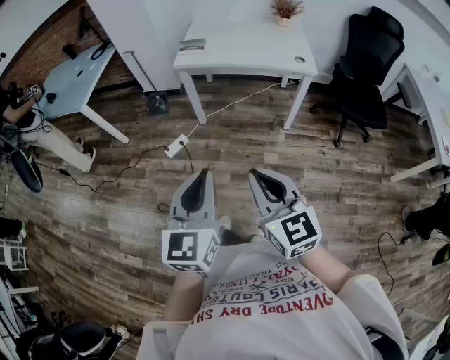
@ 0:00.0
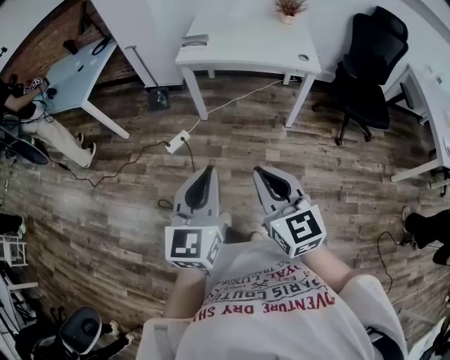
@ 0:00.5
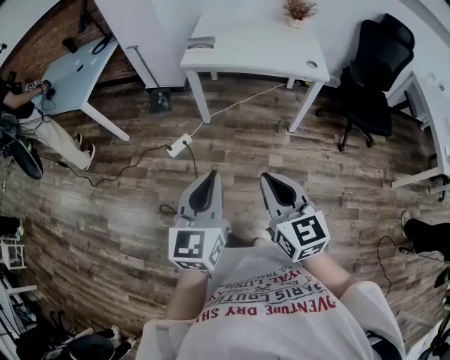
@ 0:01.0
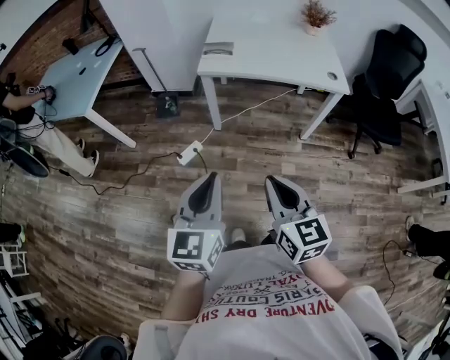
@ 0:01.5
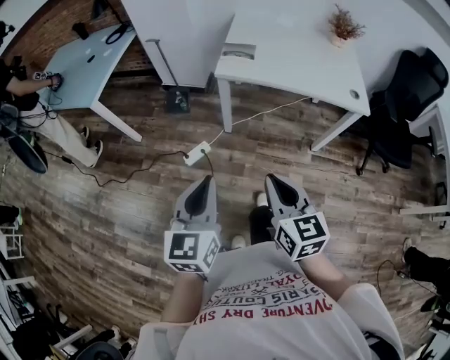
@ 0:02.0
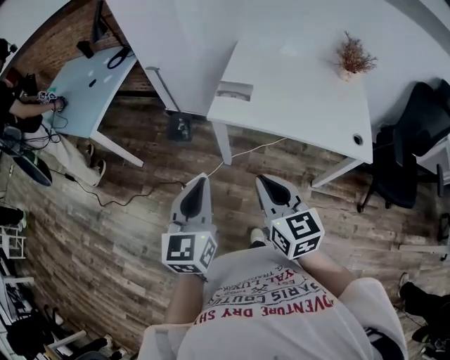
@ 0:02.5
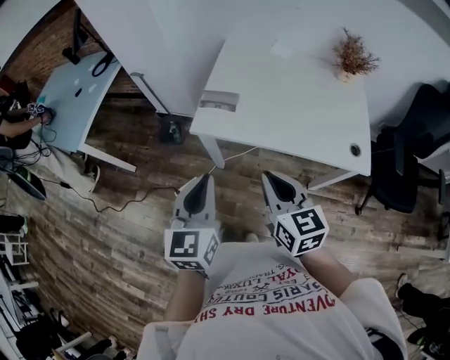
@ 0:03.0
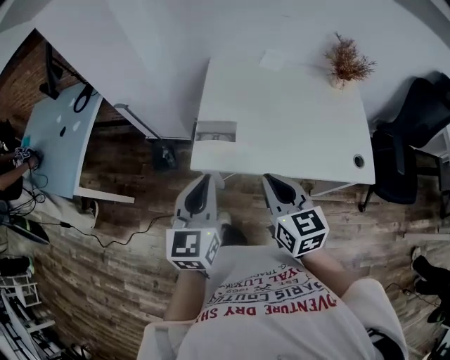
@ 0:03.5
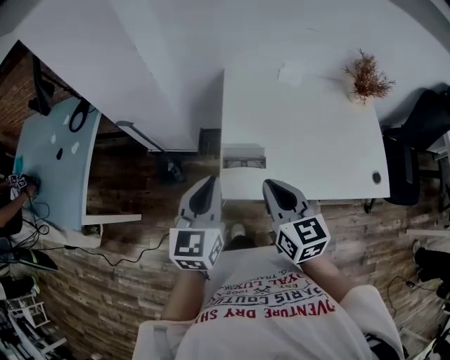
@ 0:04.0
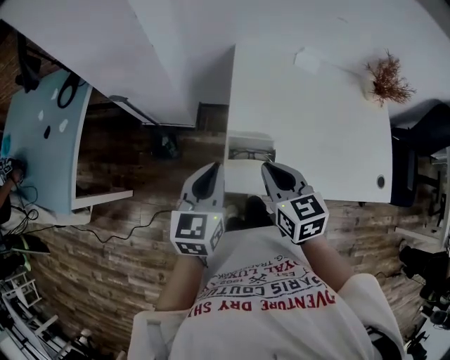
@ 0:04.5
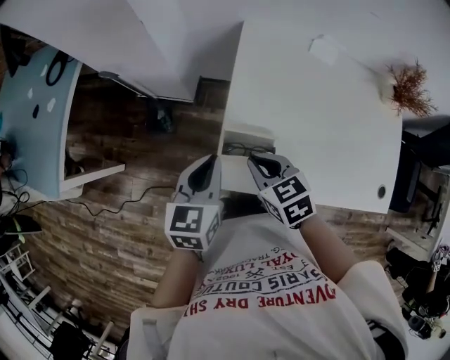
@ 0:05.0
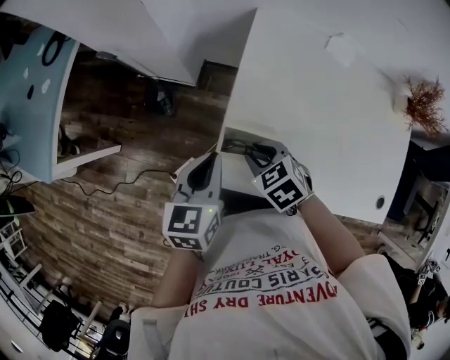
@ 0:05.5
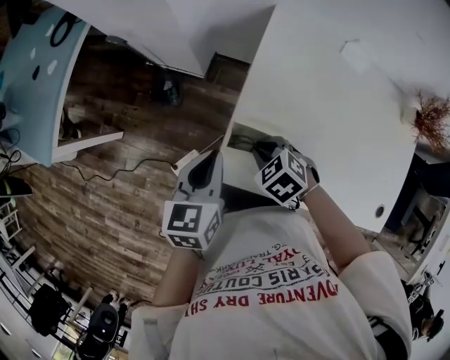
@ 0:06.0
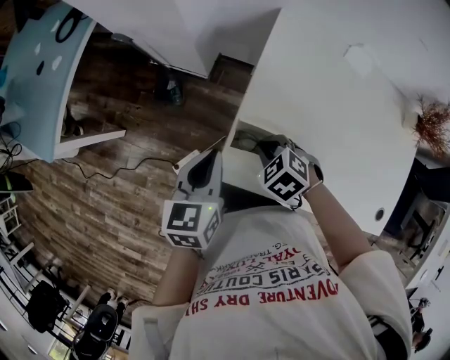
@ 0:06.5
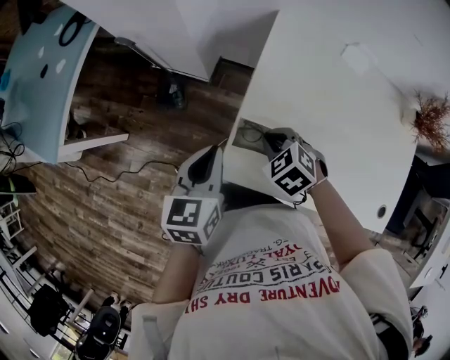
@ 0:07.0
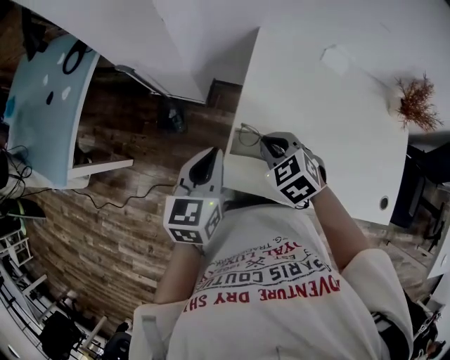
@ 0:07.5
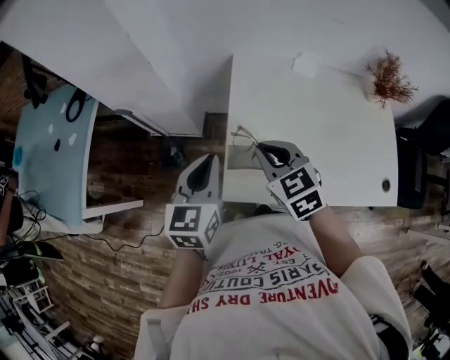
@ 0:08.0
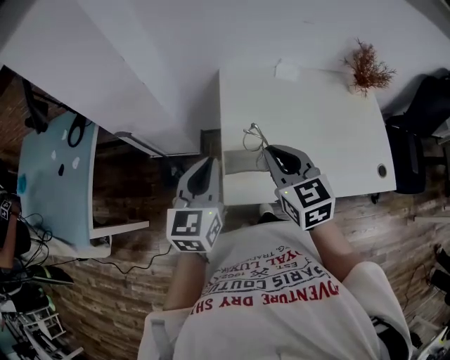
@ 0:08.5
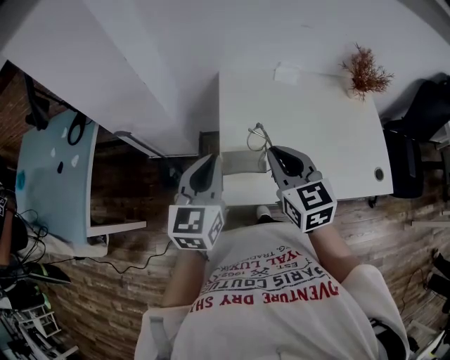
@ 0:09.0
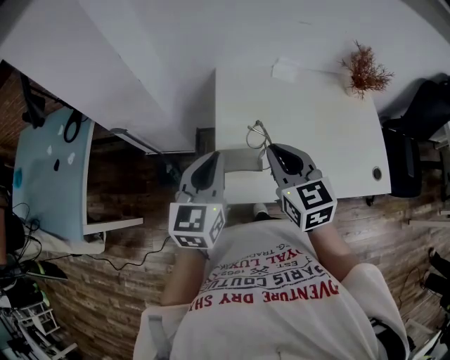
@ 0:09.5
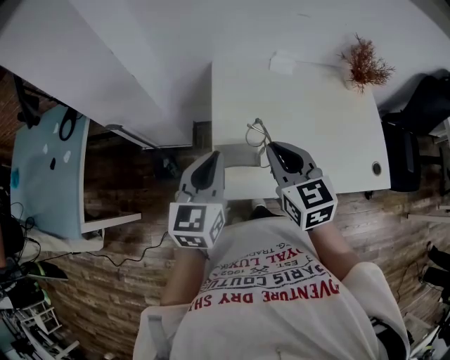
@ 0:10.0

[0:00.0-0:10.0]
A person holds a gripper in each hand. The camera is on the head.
0:00.0 to 0:02.0: Both grippers travel together forward and to the left, some 25 cm.
0:02.0 to 0:04.0: Both grippers are carried forward, some 50 cm.
0:04.0 to 0:06.0: The left gripper moves downward, roughly 15 cm, and swivels roughly 30 degrees. The right gripper heads downward, covering approximately 20 cm, and points its fingers roughly 50 degrees further downward.
0:06.0 to 0:08.0: The left gripper heads upward, covering about 10 cm, and swivels approximately 20 degrees, while the right gripper heads upward, covering some 20 cm, and tilts its fingers about 30 degrees upward.
0:08.0 to 0:10.0: Both grippers move to the right, about 5 cm. The right gripper rotates some 20 degrees.

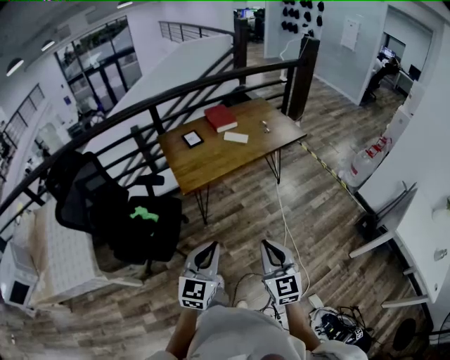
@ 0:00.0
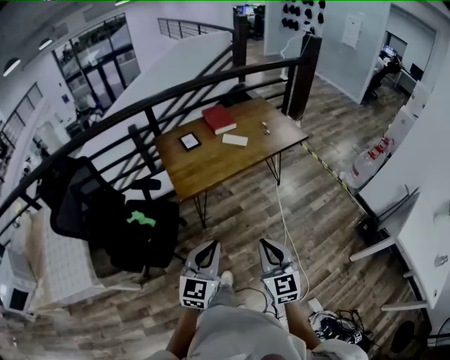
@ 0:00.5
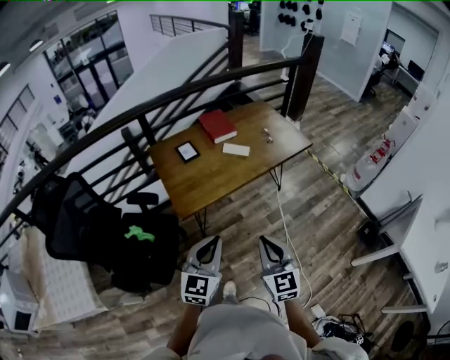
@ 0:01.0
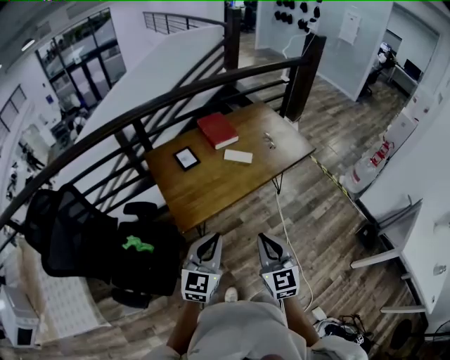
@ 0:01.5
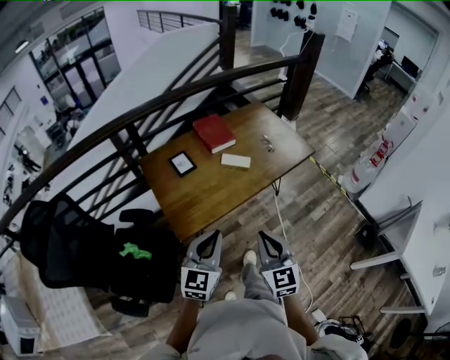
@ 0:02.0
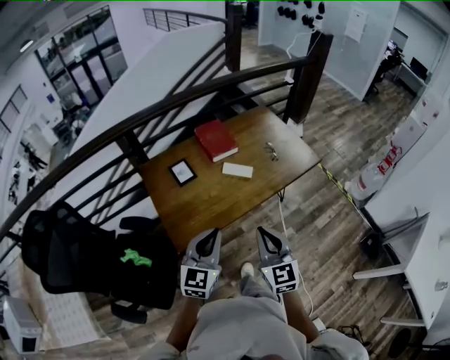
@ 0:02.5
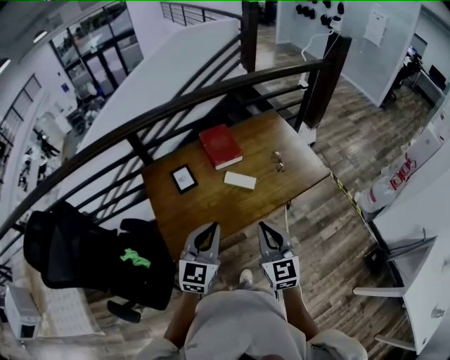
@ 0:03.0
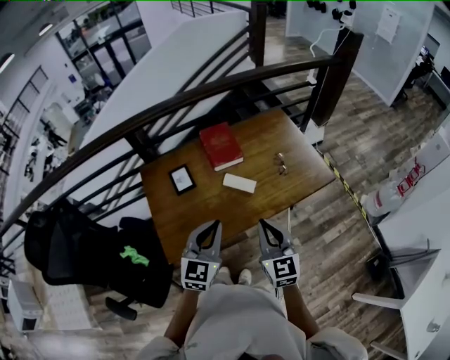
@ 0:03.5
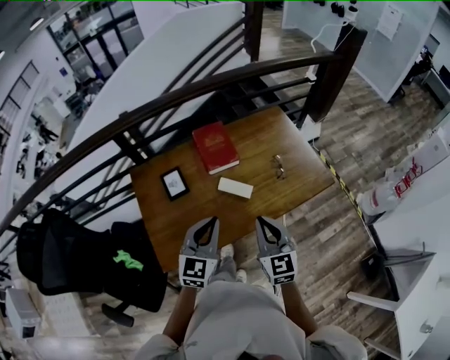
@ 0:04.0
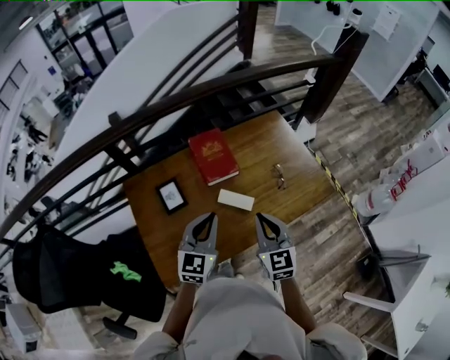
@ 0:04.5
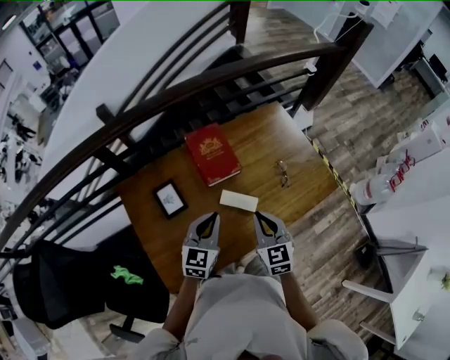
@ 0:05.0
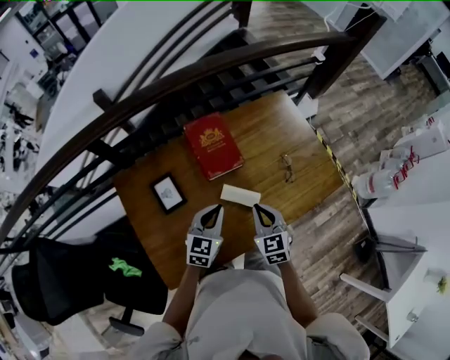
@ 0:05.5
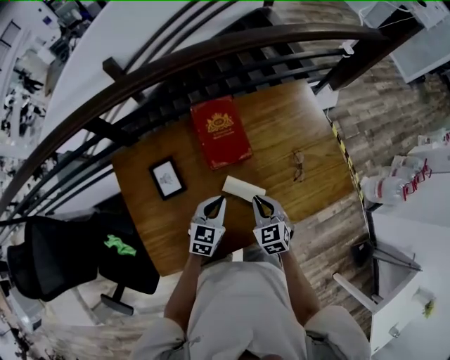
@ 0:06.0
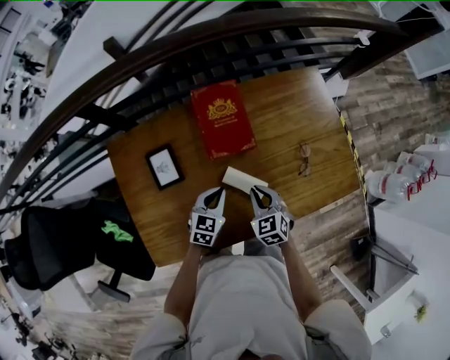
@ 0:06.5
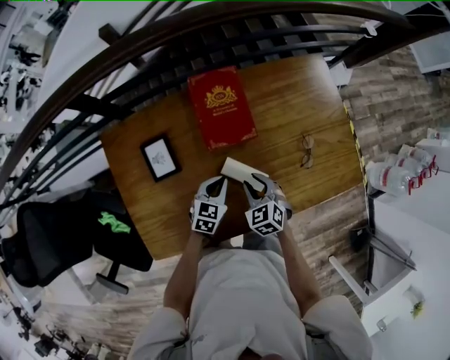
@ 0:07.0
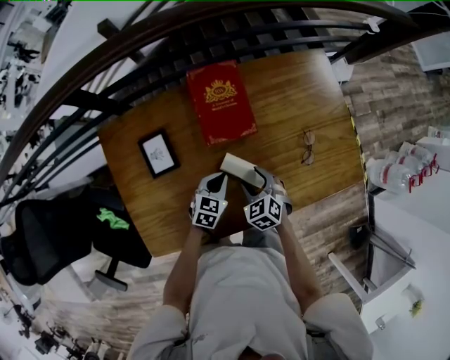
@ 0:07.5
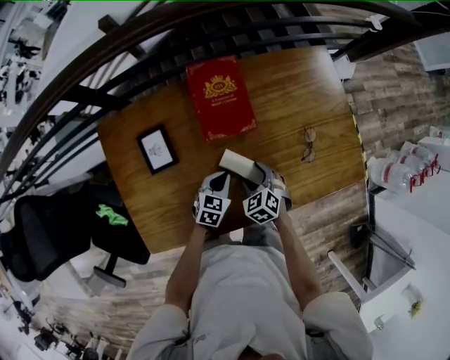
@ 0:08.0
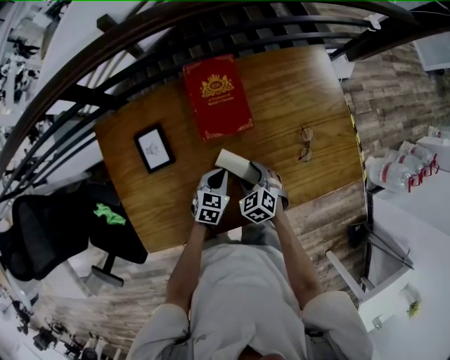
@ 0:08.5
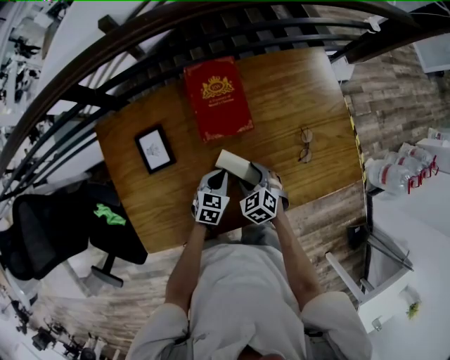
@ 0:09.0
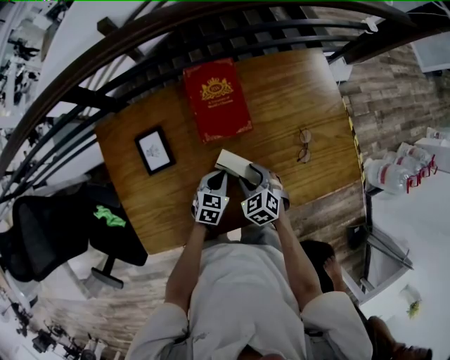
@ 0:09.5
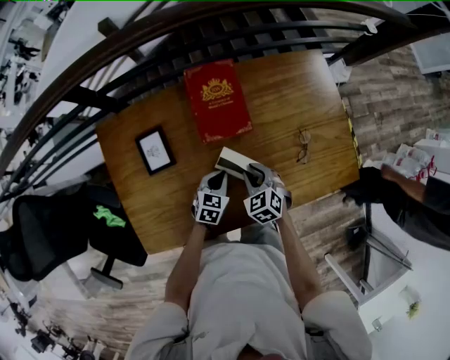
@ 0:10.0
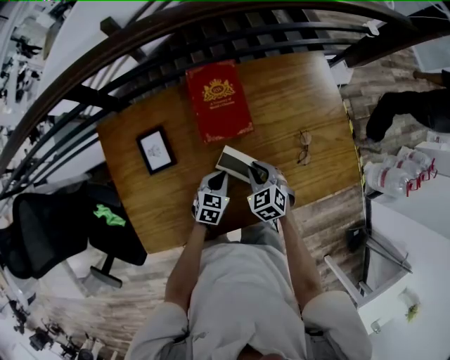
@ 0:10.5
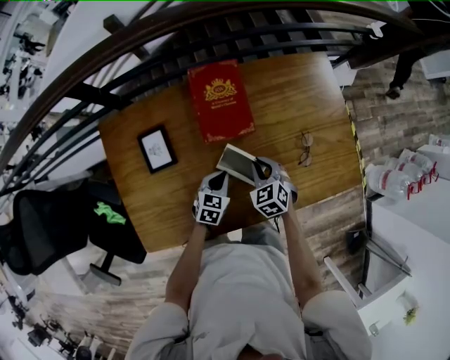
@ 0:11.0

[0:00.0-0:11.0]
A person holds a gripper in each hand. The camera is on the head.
0:00.0 to 0:02.0: Both grippers travel together forward, roughly 30 cm.
0:02.0 to 0:03.5: The grippers both shift forward by some 20 cm.
0:03.5 to 0:05.5: Both grippers travel together forward and downward, roughly 25 cm. The right gripper swivels about 20 degrees.
0:05.5 to 0:07.5: Both grippers travel together downward, roughly 15 cm. The left gripper rotates about 20 degrees. Meanwhile the right gripper swivels approximately 30 degrees, and opens.
0:07.5 to 0:09.0: There are only small adjustments of the grippers.
0:09.0 to 0:11.0: The right gripper ends up about 5 cm from where it was, and closes.

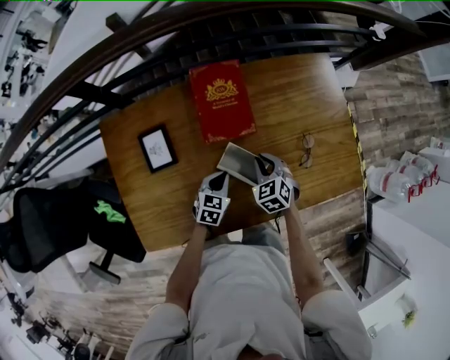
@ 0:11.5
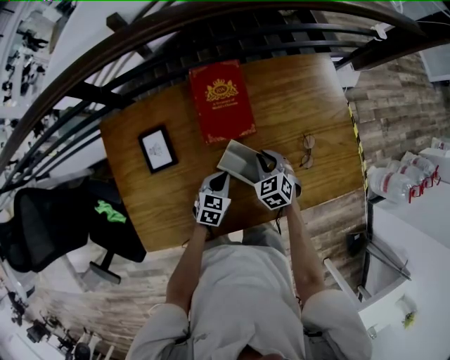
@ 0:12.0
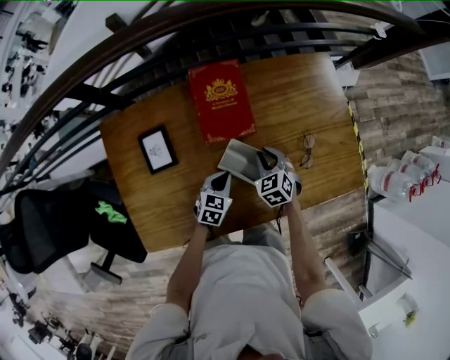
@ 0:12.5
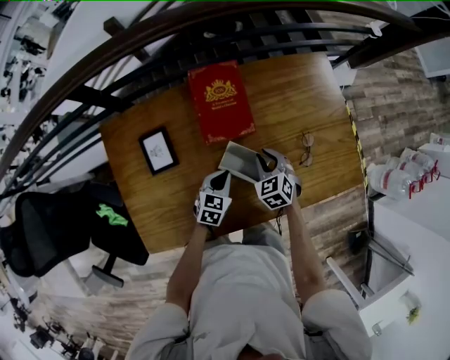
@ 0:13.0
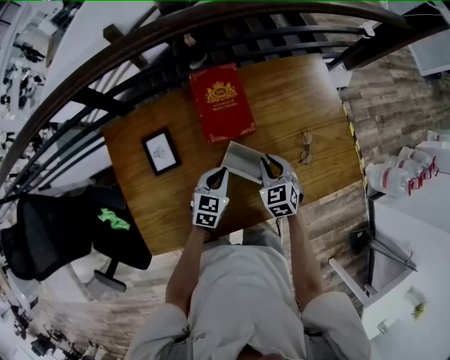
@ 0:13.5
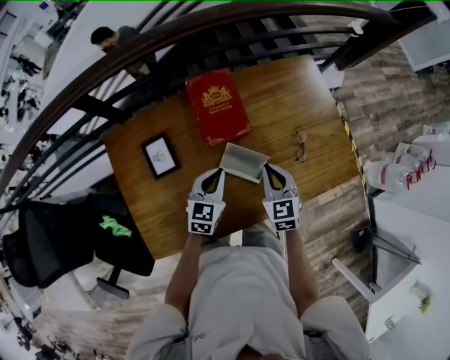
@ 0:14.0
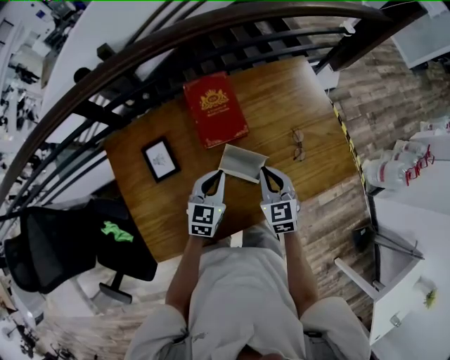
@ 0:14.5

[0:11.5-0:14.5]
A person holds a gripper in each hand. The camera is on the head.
0:11.5 to 0:13.0: The grippers move only a little.
0:13.0 to 0:14.5: The left gripper goes some 10 cm upward. The right gripper goes approximately 10 cm upward and backward, and turns by roughly 30 degrees.

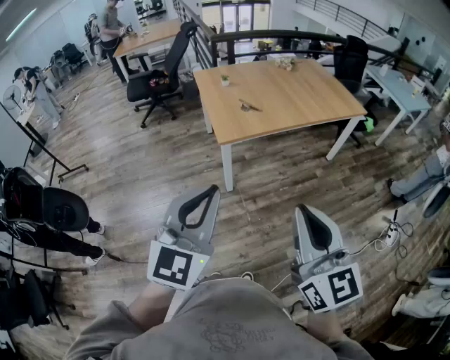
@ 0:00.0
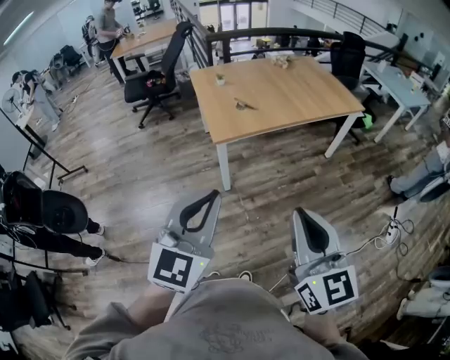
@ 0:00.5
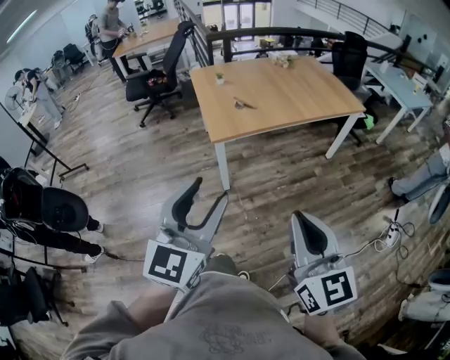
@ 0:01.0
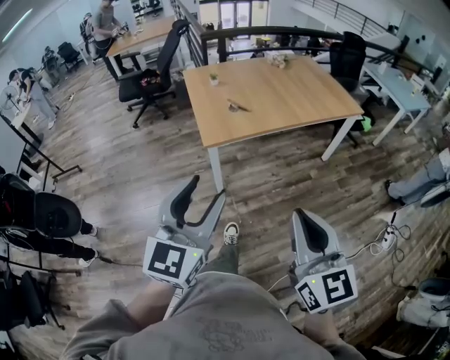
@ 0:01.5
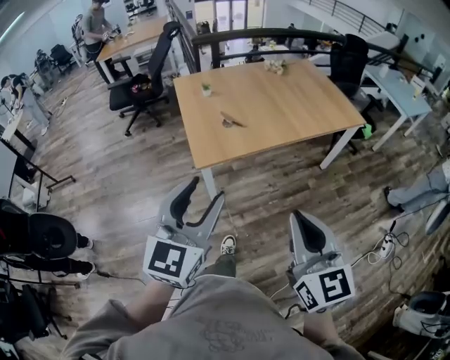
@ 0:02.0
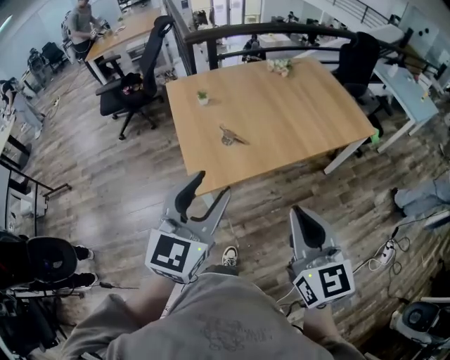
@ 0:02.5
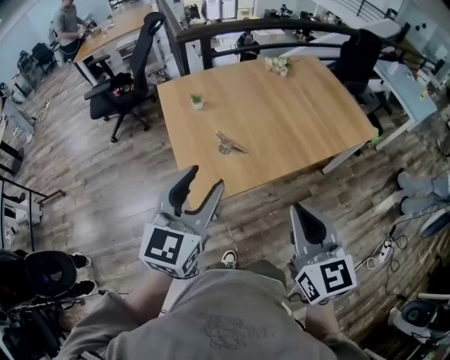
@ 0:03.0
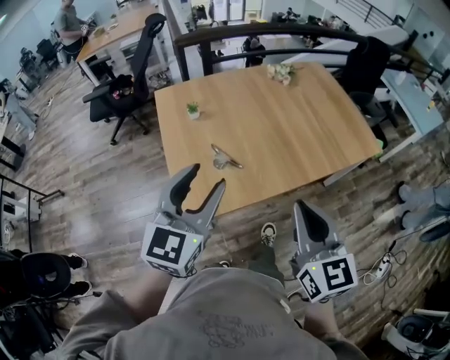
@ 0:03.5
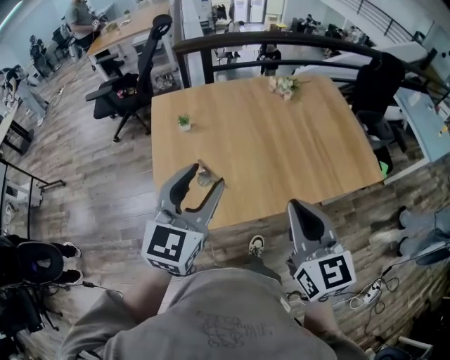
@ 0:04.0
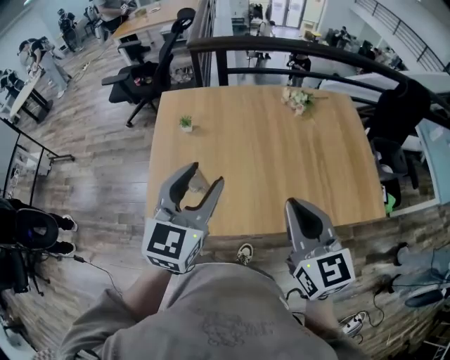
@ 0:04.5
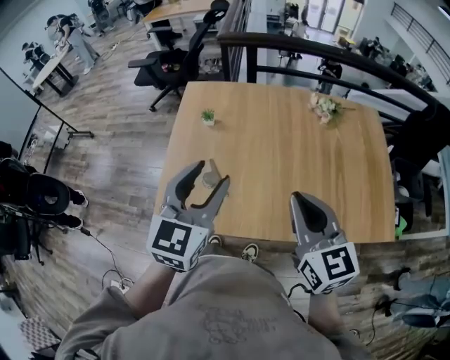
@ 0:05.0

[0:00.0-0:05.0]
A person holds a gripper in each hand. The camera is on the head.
0:00.0 to 0:02.5: The two grippers travel together, forward, about 50 cm. The left gripper opens its fingers.
0:02.5 to 0:05.0: The pair of grippers is taken some 50 cm. The right gripper turns by about 30 degrees; the left gripper changes its angle by roughly 30 degrees.
